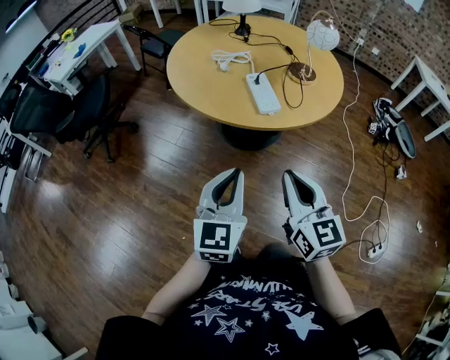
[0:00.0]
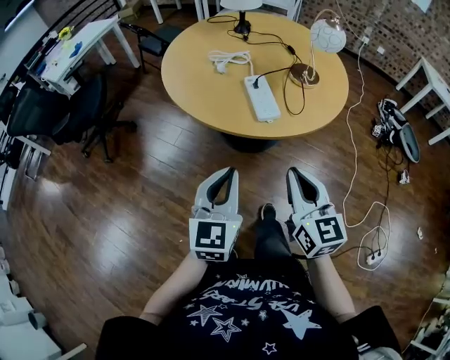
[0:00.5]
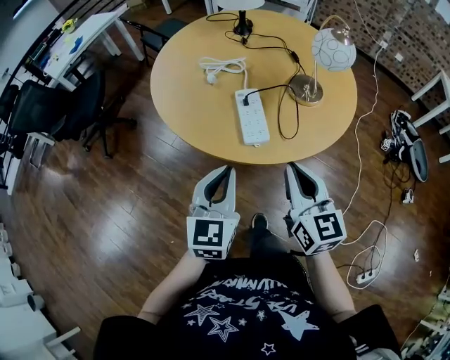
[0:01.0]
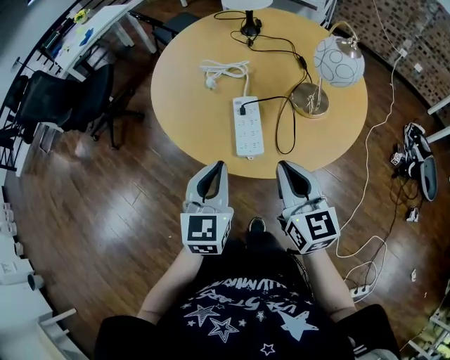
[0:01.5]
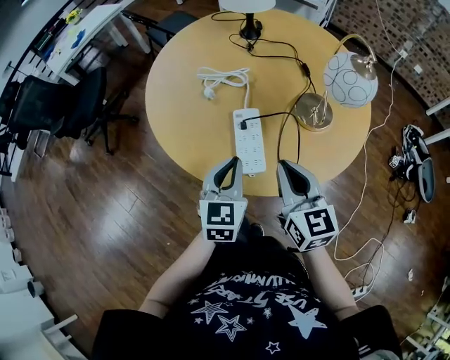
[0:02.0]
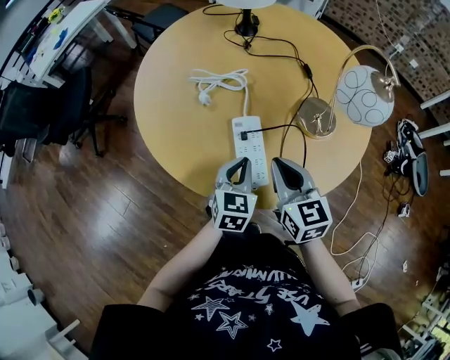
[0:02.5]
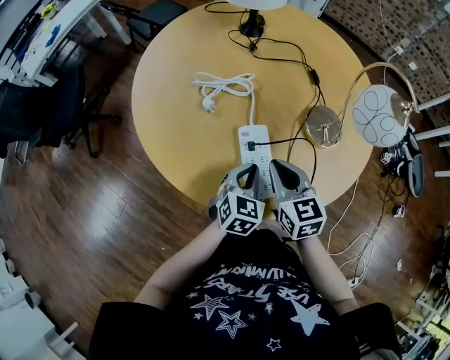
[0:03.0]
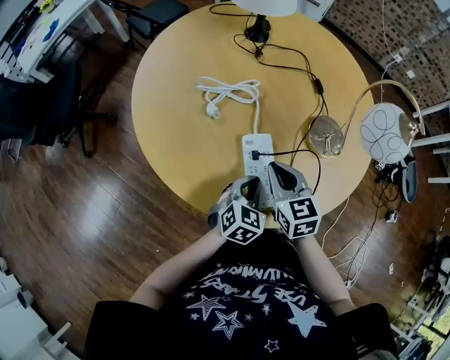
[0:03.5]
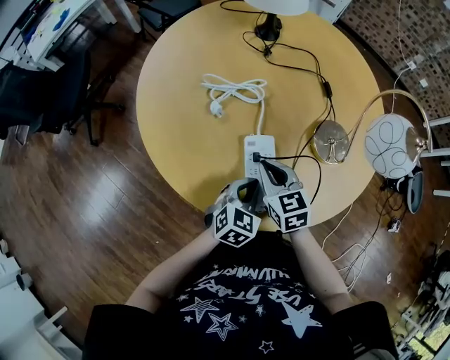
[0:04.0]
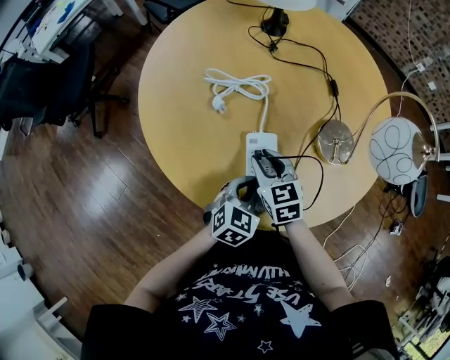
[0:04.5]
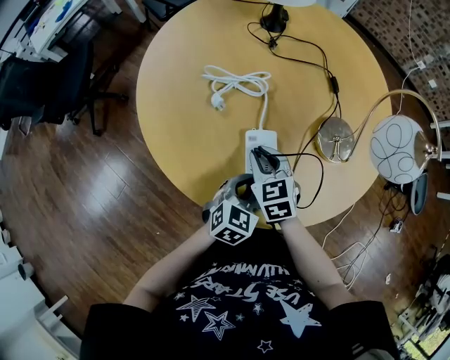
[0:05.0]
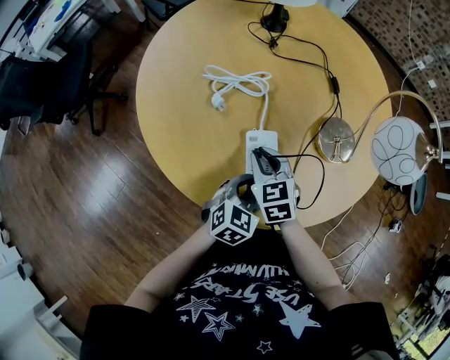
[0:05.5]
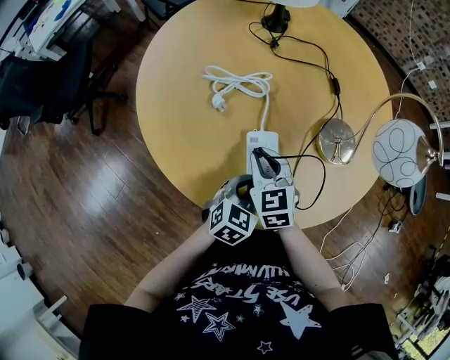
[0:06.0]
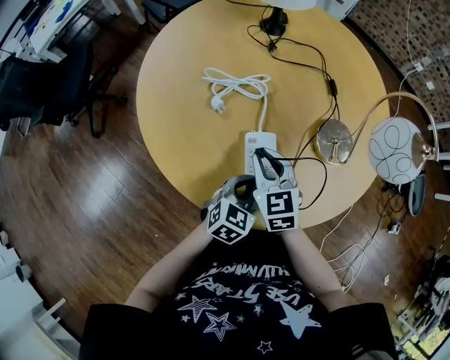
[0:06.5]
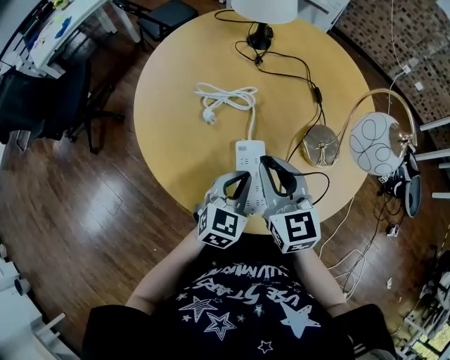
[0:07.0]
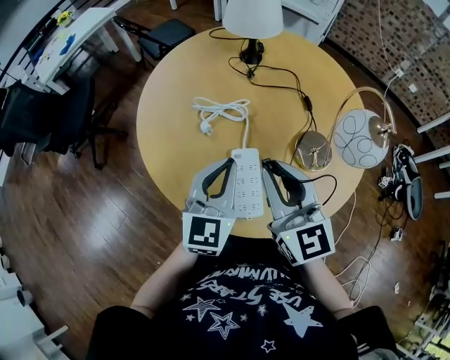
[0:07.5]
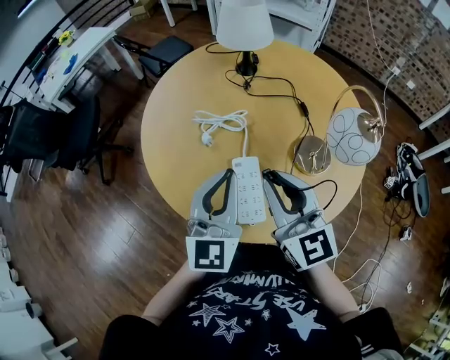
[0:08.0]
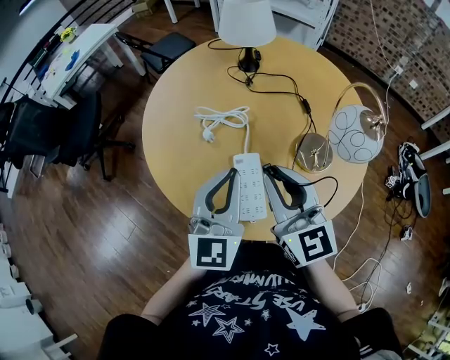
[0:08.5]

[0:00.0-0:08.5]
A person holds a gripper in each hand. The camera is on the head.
0:00.0 to 0:02.0: The grippers both shift forward and to the right by about 30 cm.
0:02.0 to 0:04.0: The right gripper travels downward, forward and to the left by roughly 20 cm, and turns by some 20 degrees; the left gripper moves downward and forward, about 15 cm, and changes its angle by some 30 degrees.
0:04.0 to 0:06.5: The grippers stay close to where they were, moving slightly.
0:06.5 to 0:08.5: Both grippers travel together upward, some 20 cm. The right gripper rotates some 30 degrees. Meanwhile the left gripper tips its fingers upward by about 40 degrees.

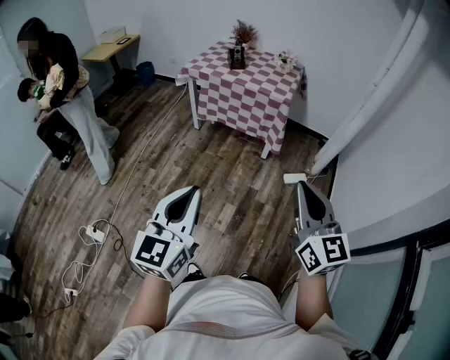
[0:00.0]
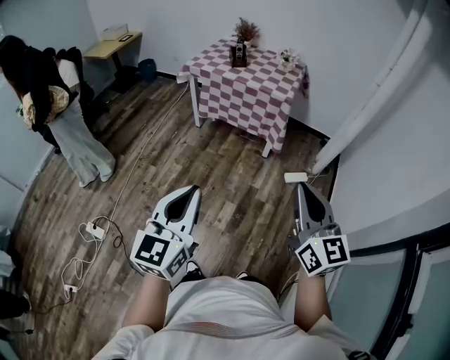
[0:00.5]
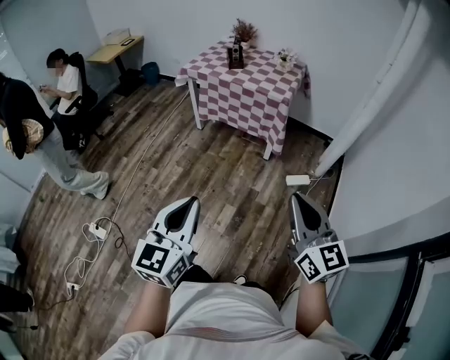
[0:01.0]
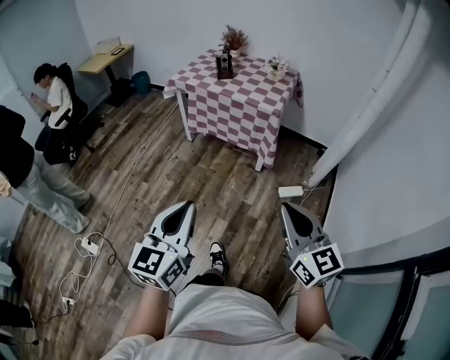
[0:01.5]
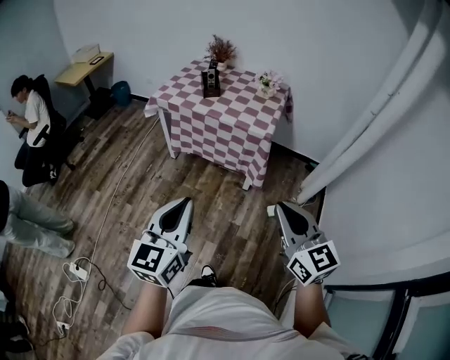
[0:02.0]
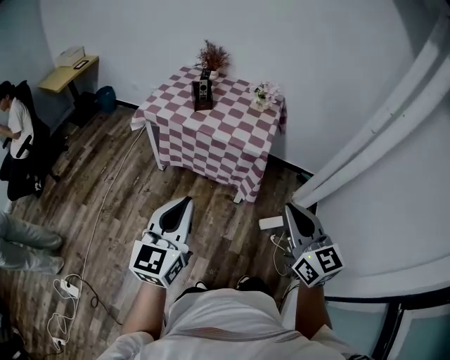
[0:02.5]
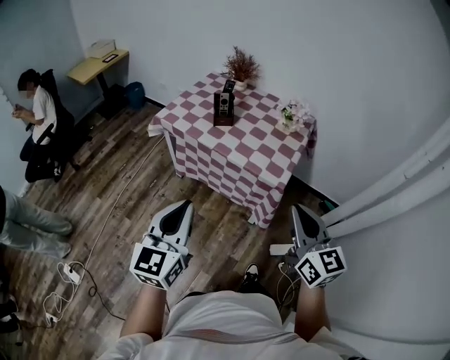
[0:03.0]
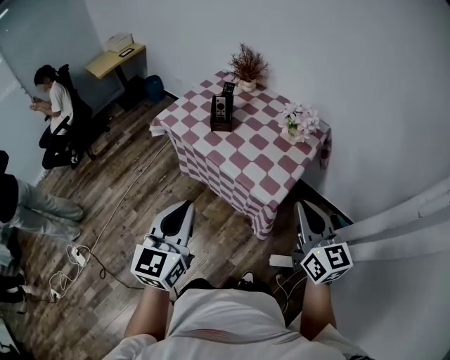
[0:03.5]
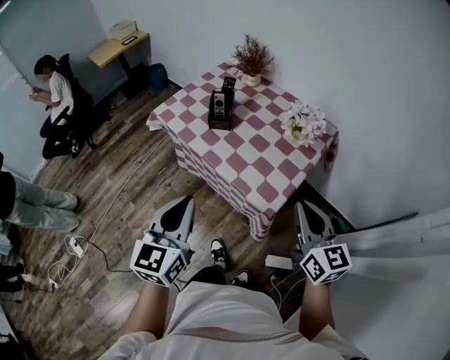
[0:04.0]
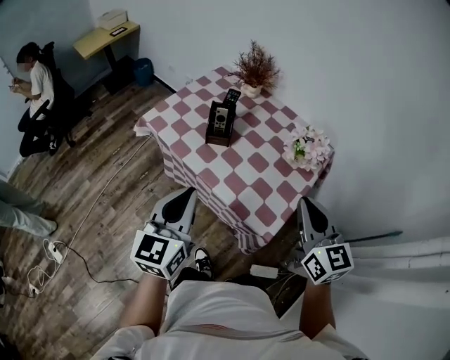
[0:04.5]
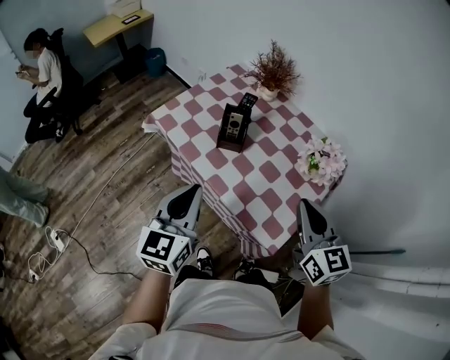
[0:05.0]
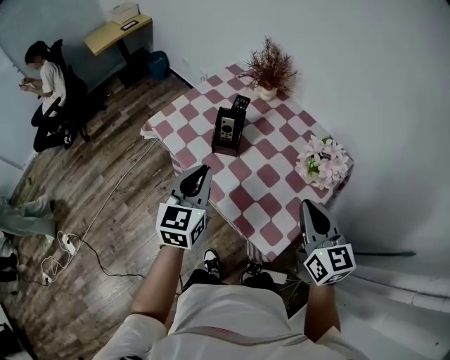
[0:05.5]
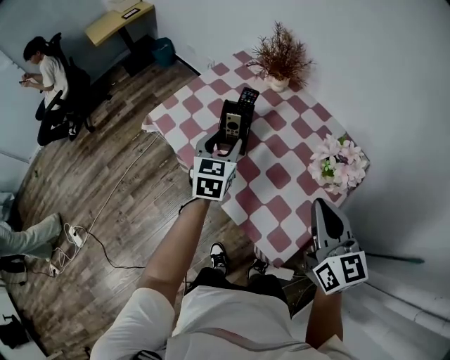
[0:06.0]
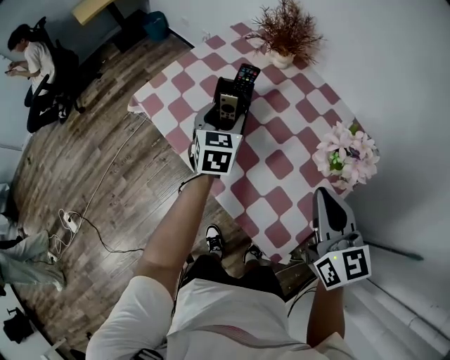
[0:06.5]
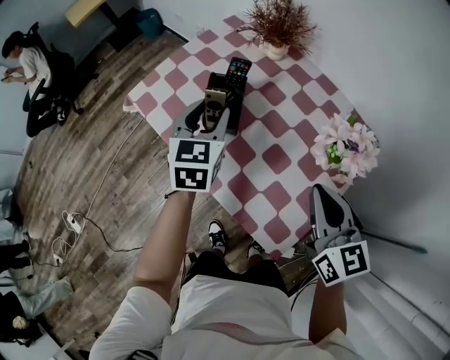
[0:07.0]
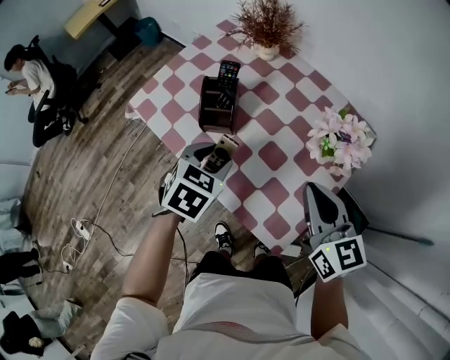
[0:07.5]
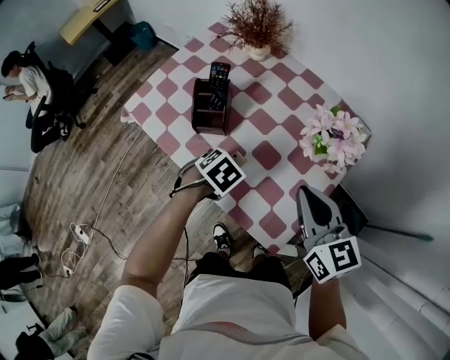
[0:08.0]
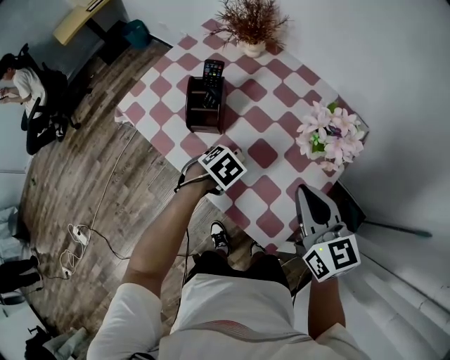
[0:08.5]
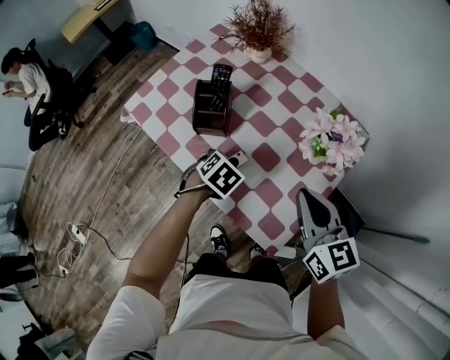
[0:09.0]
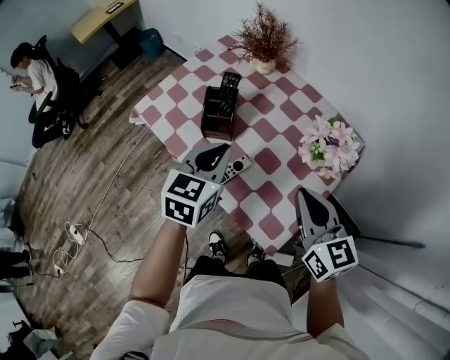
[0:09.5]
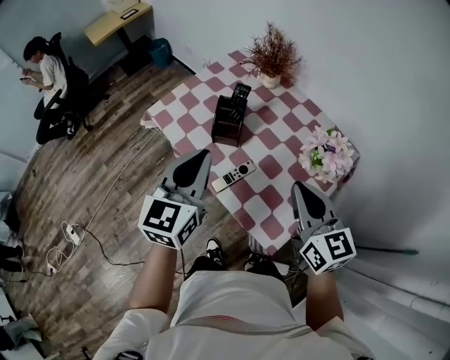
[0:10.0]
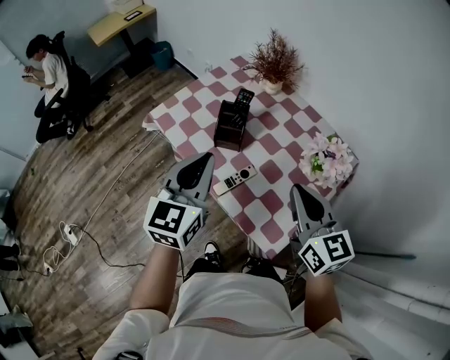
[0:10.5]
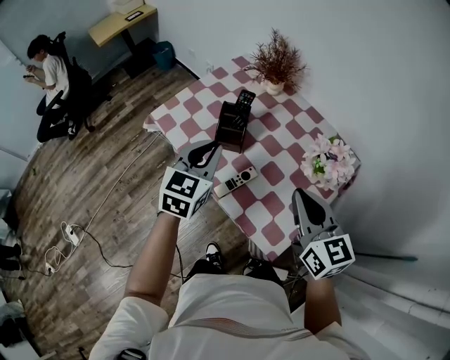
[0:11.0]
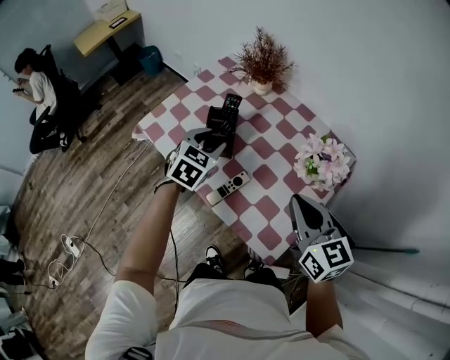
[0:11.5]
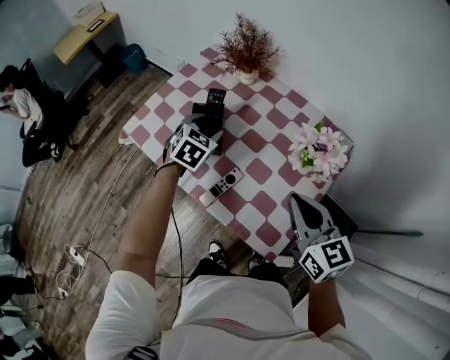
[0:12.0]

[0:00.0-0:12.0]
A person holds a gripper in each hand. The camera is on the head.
0:00.0 to 0:02.0: Both grippers travel together forward, some 25 cm.
0:02.0 to 0:04.0: Both grippers are carried forward and to the right, some 50 cm. The left gripper rotates some 20 degrees.
0:04.0 to 0:06.0: The right gripper heads forward, covering about 25 cm. The left gripper goes some 40 cm forward, and opens up.
0:06.0 to 0:08.0: The right gripper moves downward, roughly 5 cm; the left gripper swings up and down, roughly 15 cm each way, with 2 reversals, and angles its fingers downward, by about 50 degrees.
0:08.0 to 0:10.0: The left gripper shifts roughly 30 cm upward, tips its fingers upward by approximately 70 degrees, and closes. Meanwhile the right gripper is displaced upward by some 5 cm.
0:10.0 to 0:12.0: The right gripper changes place by some 5 cm. Meanwhile the left gripper shifts roughly 25 cm forward and downward, points its fingers approximately 30 degrees further downward, and opens.

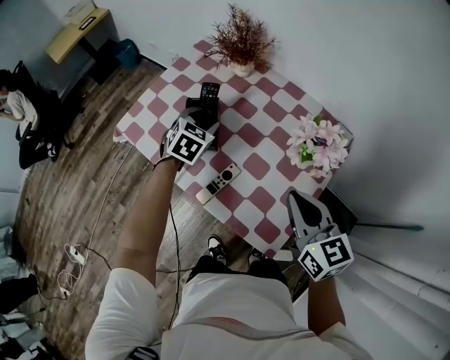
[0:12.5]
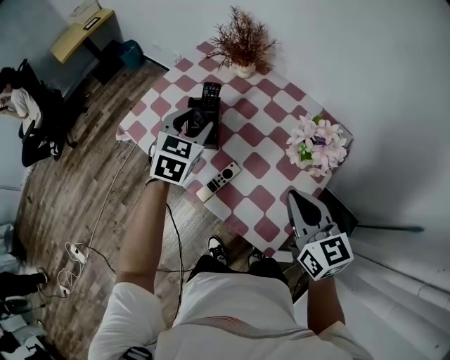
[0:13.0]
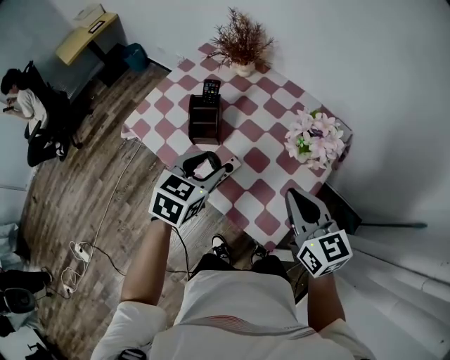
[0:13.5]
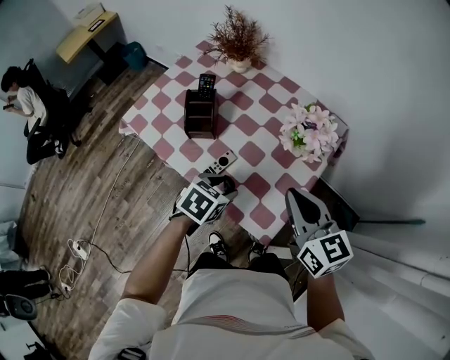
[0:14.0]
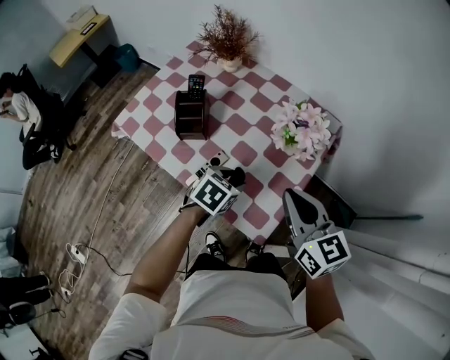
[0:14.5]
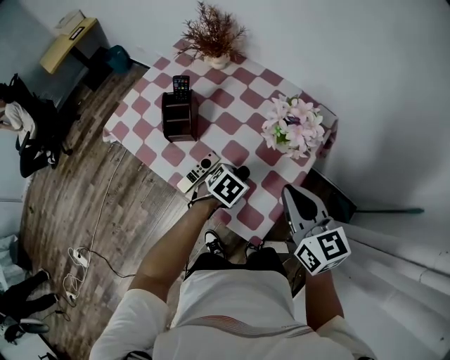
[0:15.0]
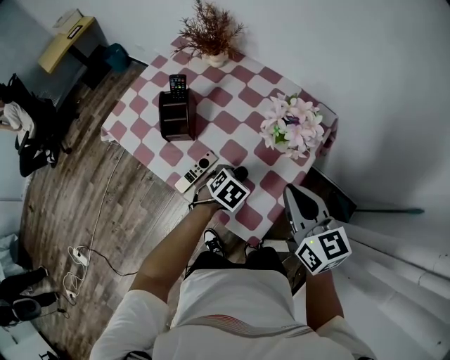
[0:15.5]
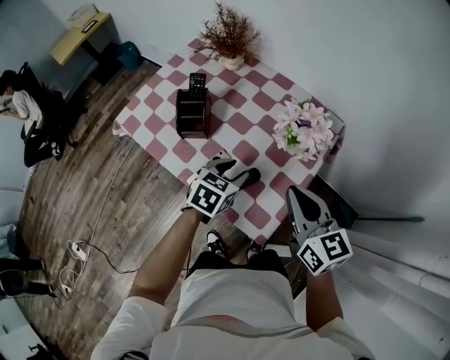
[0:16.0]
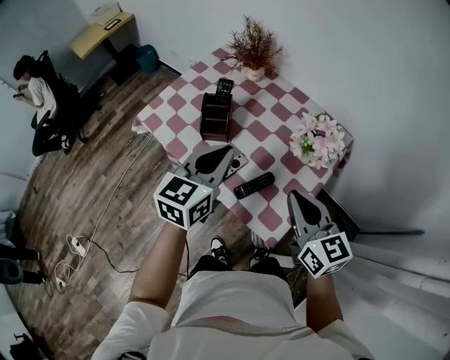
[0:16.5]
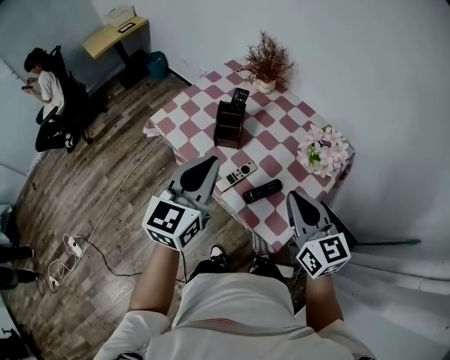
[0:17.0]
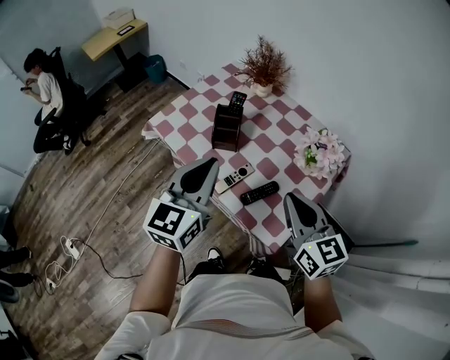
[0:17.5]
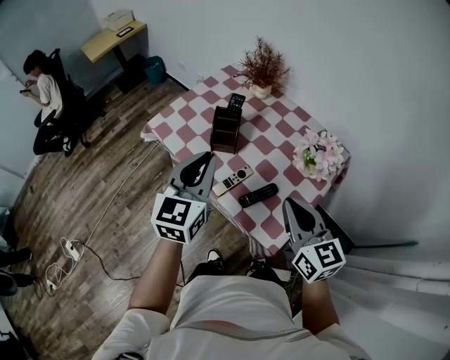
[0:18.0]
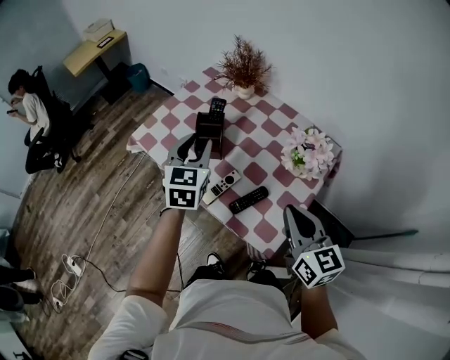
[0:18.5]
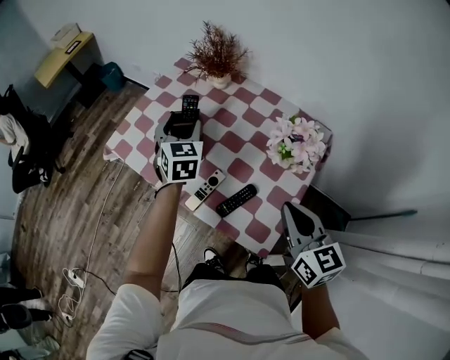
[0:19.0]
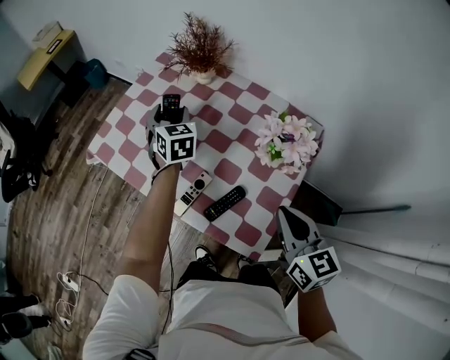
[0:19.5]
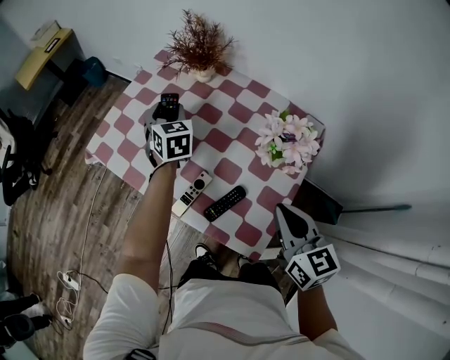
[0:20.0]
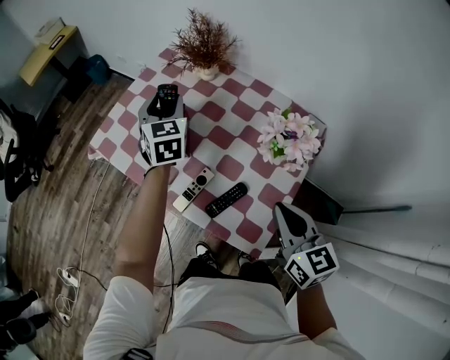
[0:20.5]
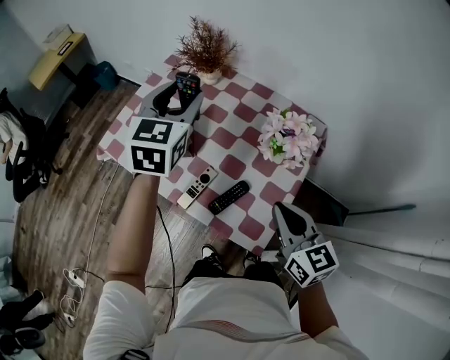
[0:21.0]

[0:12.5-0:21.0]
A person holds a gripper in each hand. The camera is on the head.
0:12.5 to 0:14.5: The left gripper travels backward and to the right by some 25 cm, and rotates about 30 degrees. Meanwhile the right gripper ends up roughly 5 cm from where it was.
0:14.5 to 0:16.5: The left gripper moves upward and to the left, about 20 cm, tips its fingers upward by about 40 degrees, and closes.
0:16.5 to 0:19.0: The left gripper goes roughly 20 cm forward, swivels roughly 30 degrees, and opens up.
0:19.0 to 0:21.0: The left gripper is displaced upward and to the right by some 15 cm, and turns by approximately 20 degrees.
